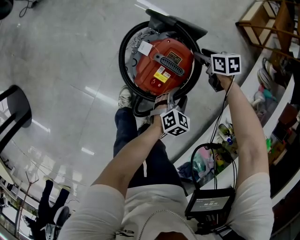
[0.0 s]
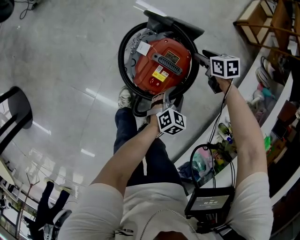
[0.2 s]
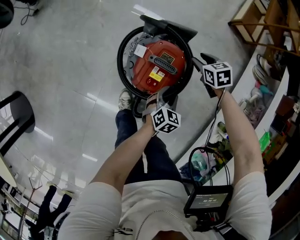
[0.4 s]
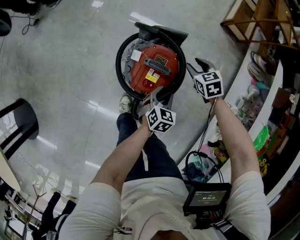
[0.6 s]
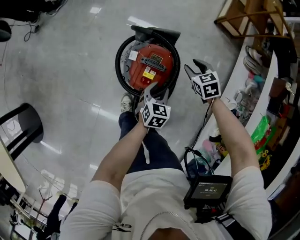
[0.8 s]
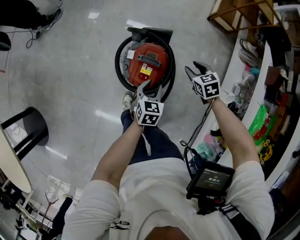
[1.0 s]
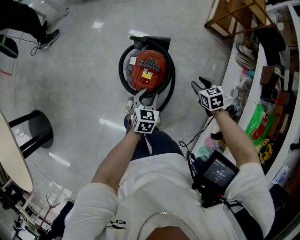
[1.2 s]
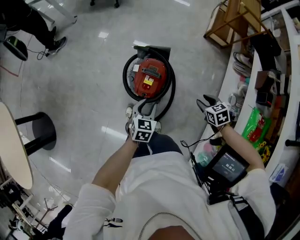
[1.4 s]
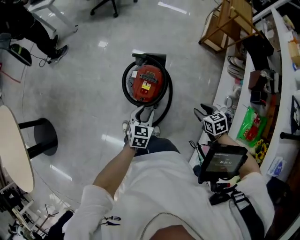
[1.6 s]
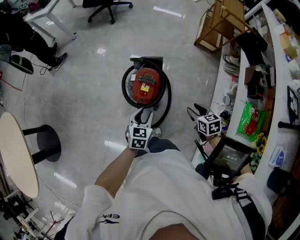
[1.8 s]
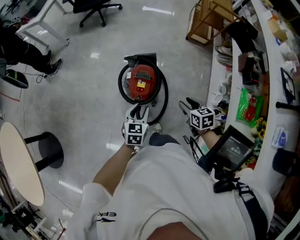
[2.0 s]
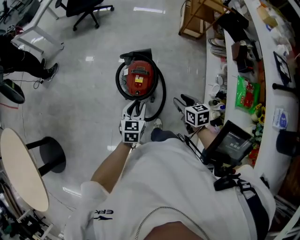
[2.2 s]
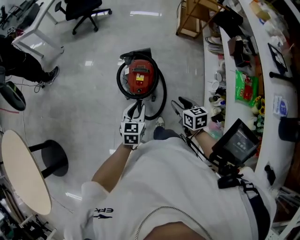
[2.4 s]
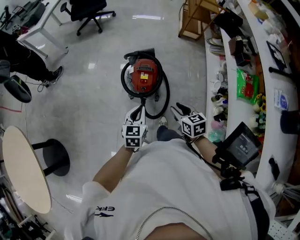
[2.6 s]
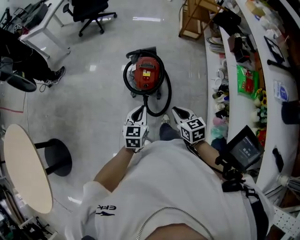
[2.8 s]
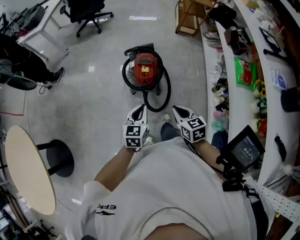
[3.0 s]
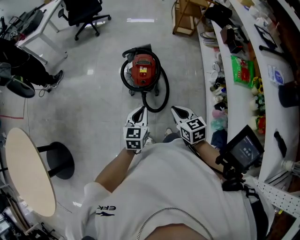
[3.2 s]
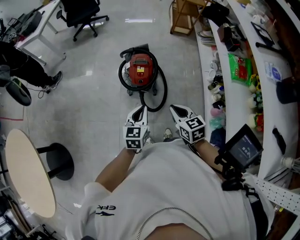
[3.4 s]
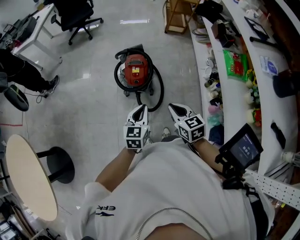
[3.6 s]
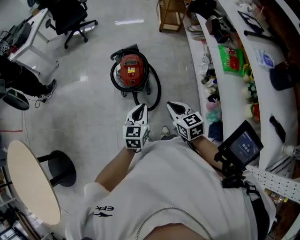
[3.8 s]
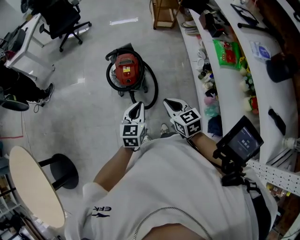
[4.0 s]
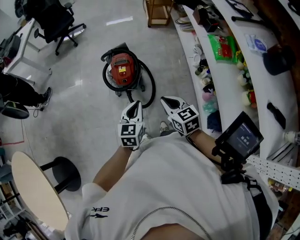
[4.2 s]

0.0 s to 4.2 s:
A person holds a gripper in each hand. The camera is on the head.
0.0 to 1.4 s: The right gripper heads backward, upward and to the right, covering approximately 40 cm; the left gripper travels upward and to the left by some 30 cm.
1.4 to 2.8 s: The right gripper travels backward, to the left and upward by about 40 cm, changes its angle by some 30 degrees, and closes its fingers. The left gripper shifts about 30 cm backward, upward and to the left, and closes.
2.8 to 4.2 s: The left gripper shifts approximately 10 cm to the right and backward. Meanwhile the right gripper shifts approximately 10 cm backward and to the right.

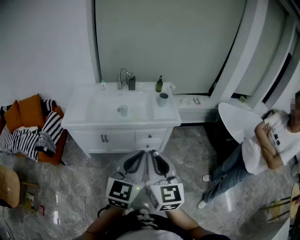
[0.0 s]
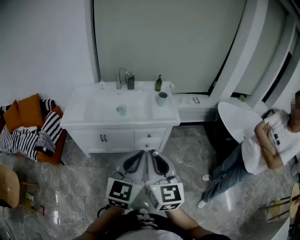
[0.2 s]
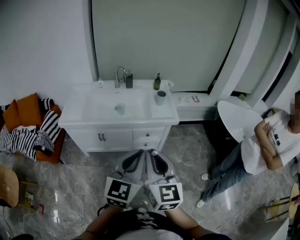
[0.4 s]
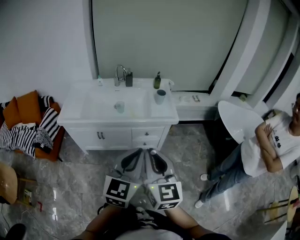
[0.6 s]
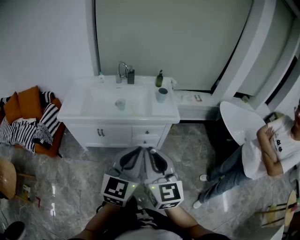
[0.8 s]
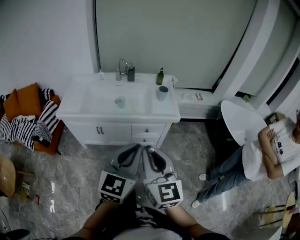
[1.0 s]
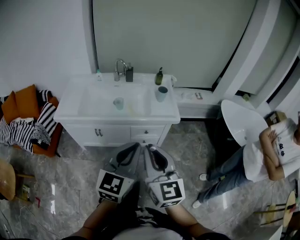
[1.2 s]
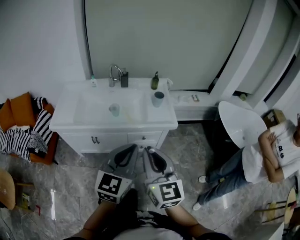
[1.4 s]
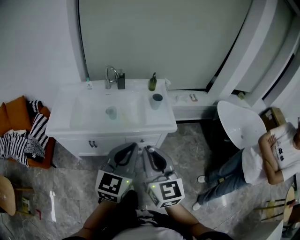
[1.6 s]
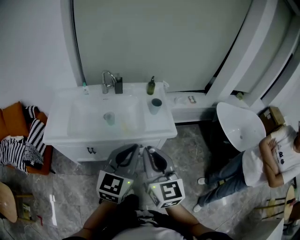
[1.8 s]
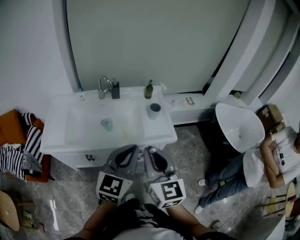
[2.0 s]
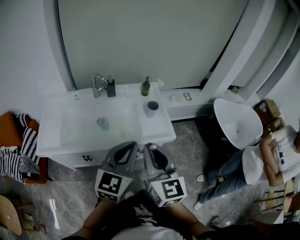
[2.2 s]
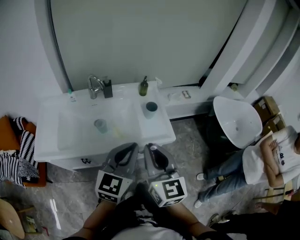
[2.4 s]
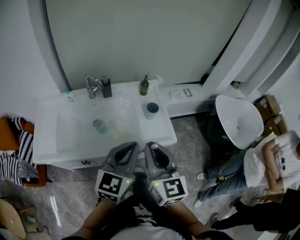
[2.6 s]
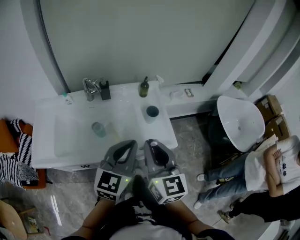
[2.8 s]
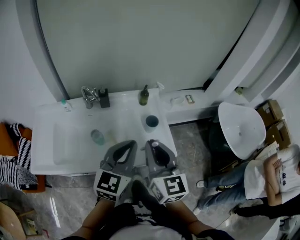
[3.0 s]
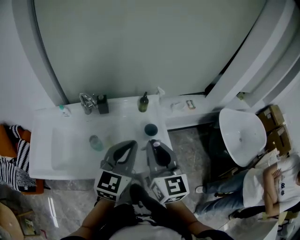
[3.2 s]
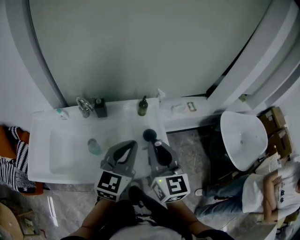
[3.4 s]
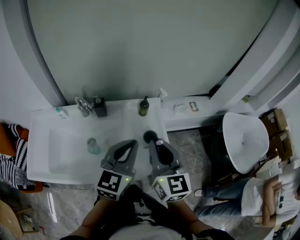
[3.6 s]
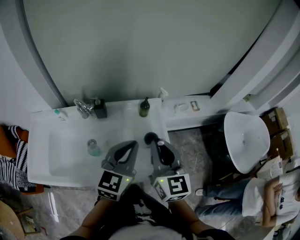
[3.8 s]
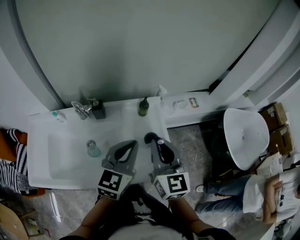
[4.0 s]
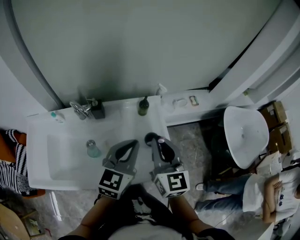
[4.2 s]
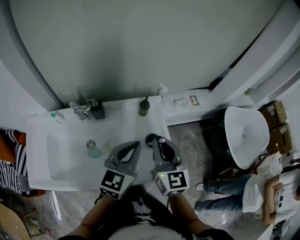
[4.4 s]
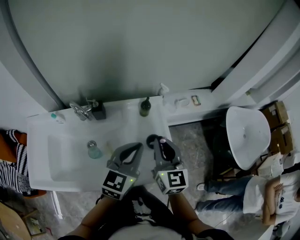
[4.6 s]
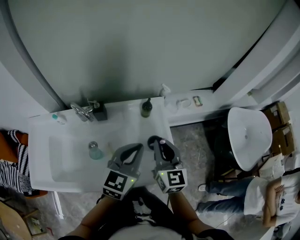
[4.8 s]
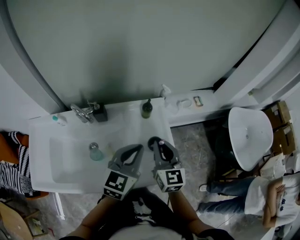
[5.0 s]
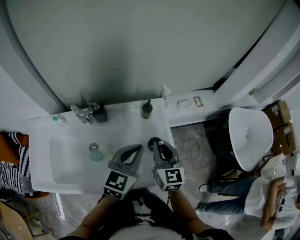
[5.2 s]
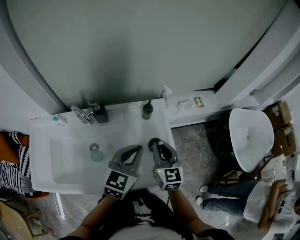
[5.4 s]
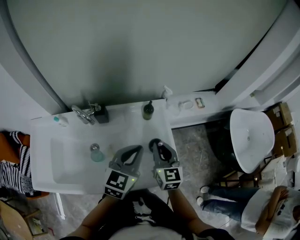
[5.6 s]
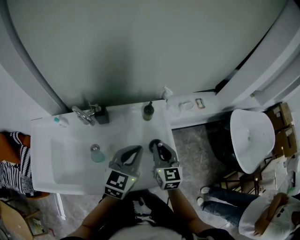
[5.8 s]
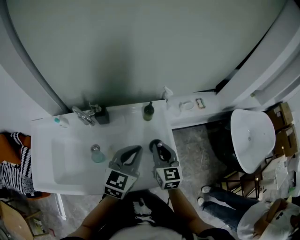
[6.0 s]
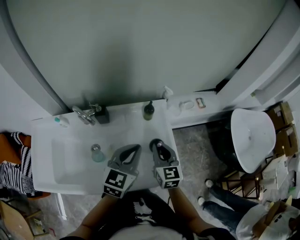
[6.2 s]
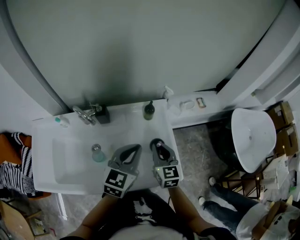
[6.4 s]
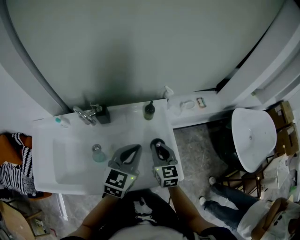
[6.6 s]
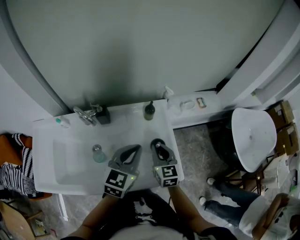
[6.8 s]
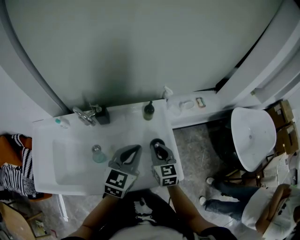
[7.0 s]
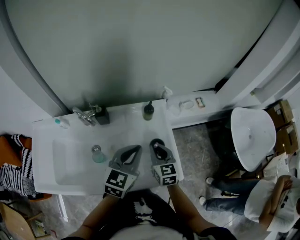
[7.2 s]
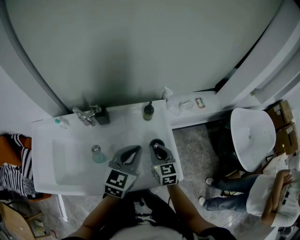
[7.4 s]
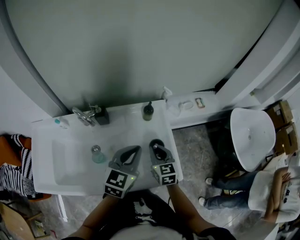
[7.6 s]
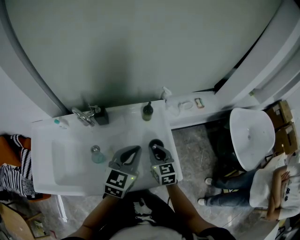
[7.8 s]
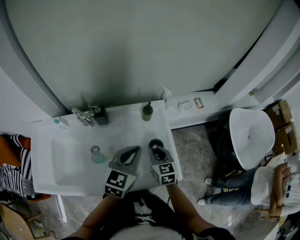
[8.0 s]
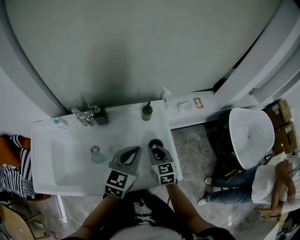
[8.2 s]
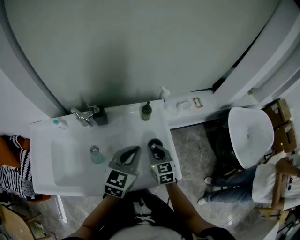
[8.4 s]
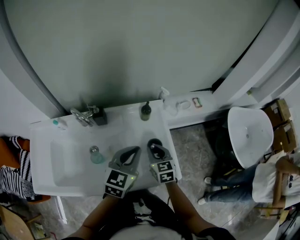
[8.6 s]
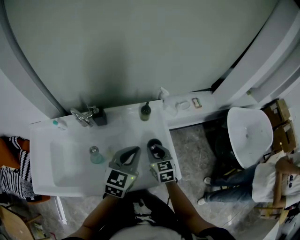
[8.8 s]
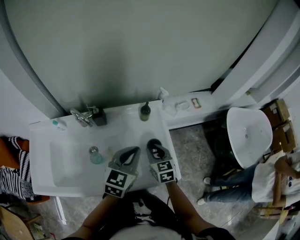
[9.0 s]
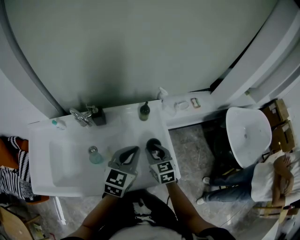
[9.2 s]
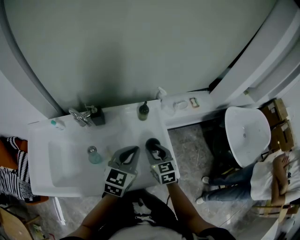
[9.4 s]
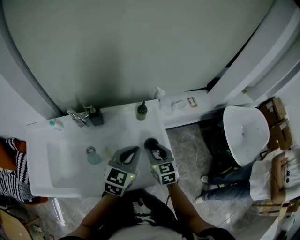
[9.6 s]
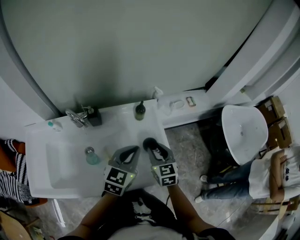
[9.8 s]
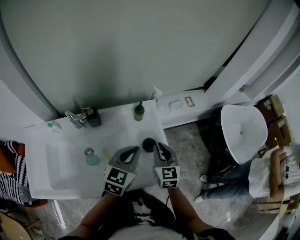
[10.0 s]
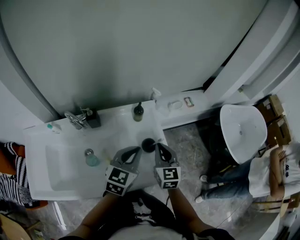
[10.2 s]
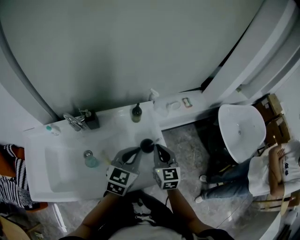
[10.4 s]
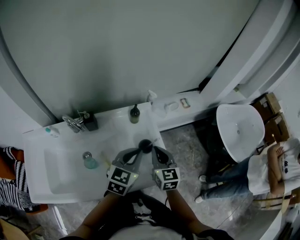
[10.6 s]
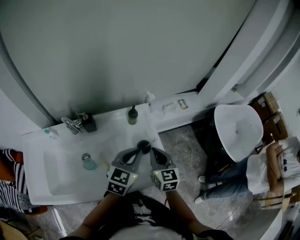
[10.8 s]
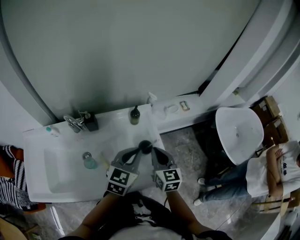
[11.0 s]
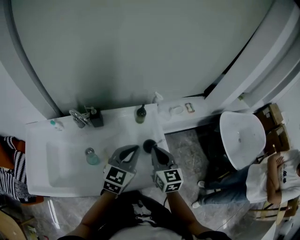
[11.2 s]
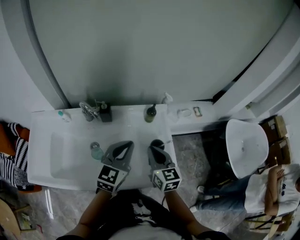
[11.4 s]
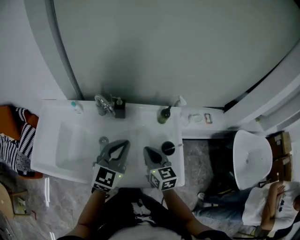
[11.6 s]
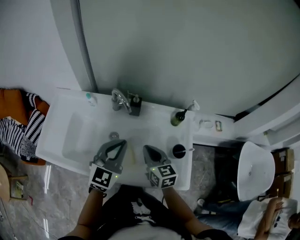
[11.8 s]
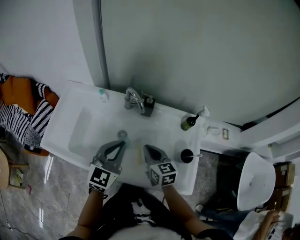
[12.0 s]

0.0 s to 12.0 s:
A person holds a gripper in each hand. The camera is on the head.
0.0 to 1.6 s: The two grippers go roughly 15 cm forward.
1.6 to 3.0 s: Both grippers move forward, some 30 cm.
3.0 to 4.4 s: Both grippers travel together forward, roughly 15 cm.
4.4 to 6.0 s: The right gripper travels downward by approximately 10 cm.
6.0 to 7.6 s: The right gripper shifts some 5 cm downward.
7.6 to 9.0 s: There are only small adjustments of the grippers.
9.0 to 10.4 s: The right gripper goes about 10 cm upward and to the right, and closes up.
10.4 to 12.0 s: The left gripper moves roughly 25 cm, and changes its angle by about 30 degrees. The right gripper changes place by about 25 cm, and turns by about 40 degrees.

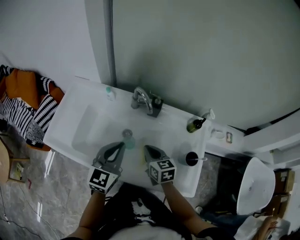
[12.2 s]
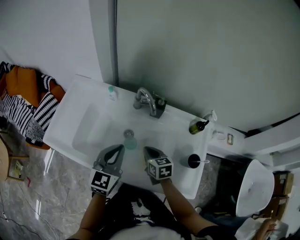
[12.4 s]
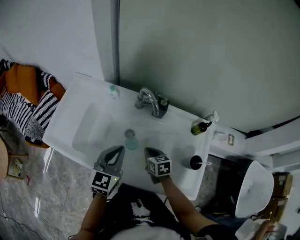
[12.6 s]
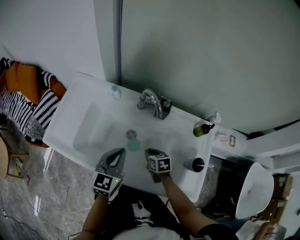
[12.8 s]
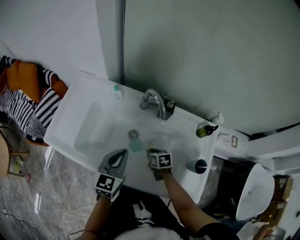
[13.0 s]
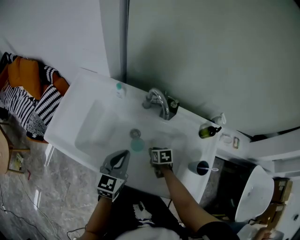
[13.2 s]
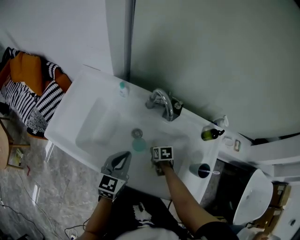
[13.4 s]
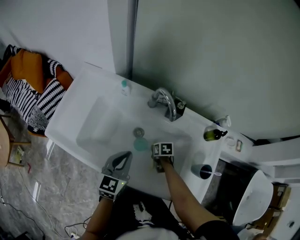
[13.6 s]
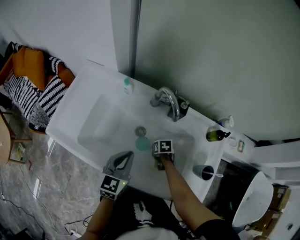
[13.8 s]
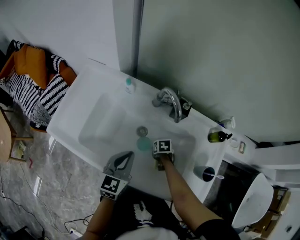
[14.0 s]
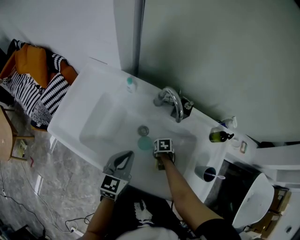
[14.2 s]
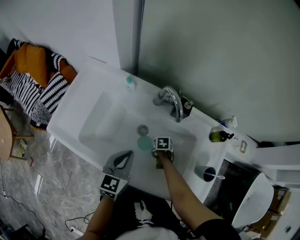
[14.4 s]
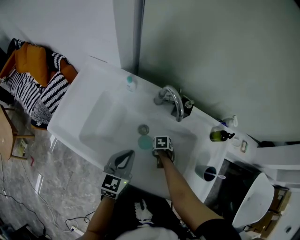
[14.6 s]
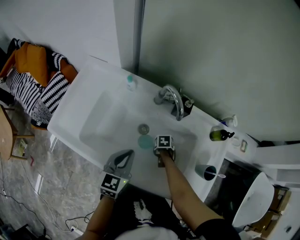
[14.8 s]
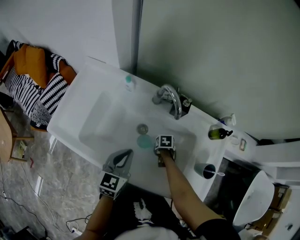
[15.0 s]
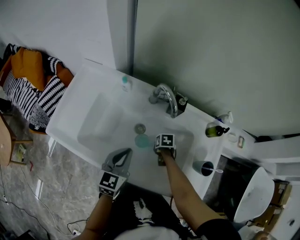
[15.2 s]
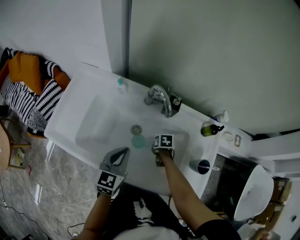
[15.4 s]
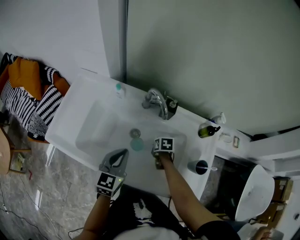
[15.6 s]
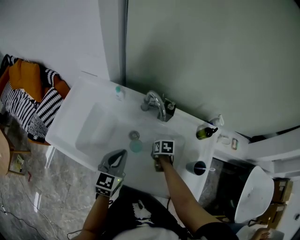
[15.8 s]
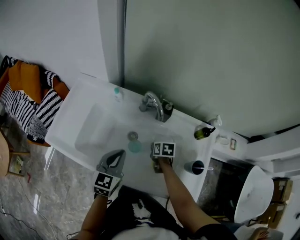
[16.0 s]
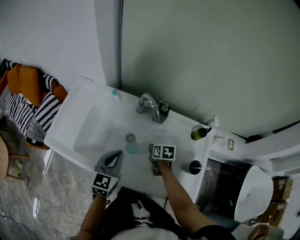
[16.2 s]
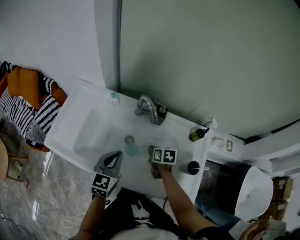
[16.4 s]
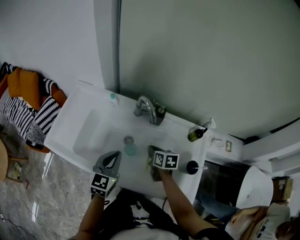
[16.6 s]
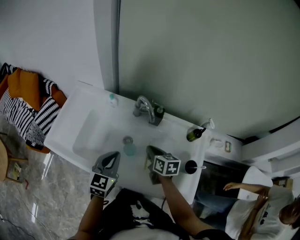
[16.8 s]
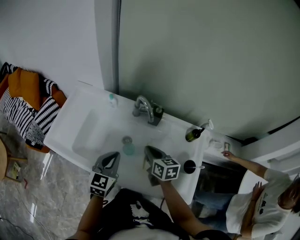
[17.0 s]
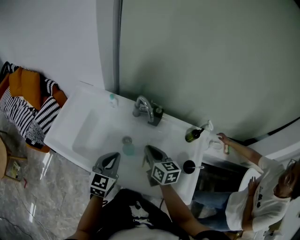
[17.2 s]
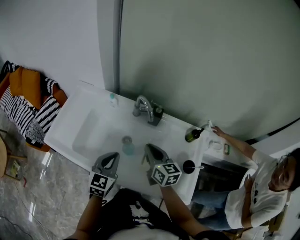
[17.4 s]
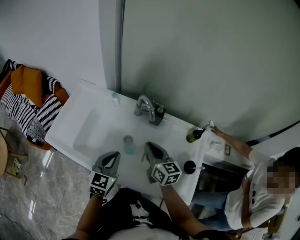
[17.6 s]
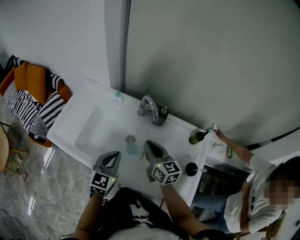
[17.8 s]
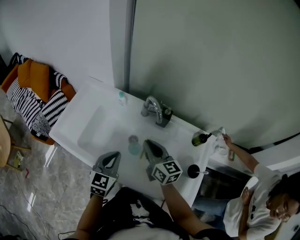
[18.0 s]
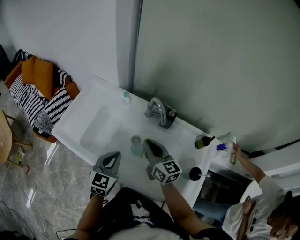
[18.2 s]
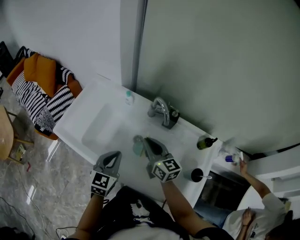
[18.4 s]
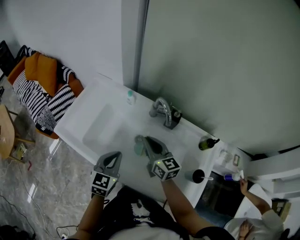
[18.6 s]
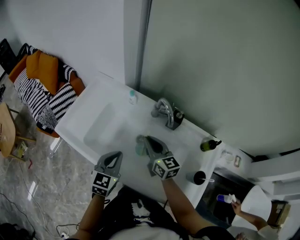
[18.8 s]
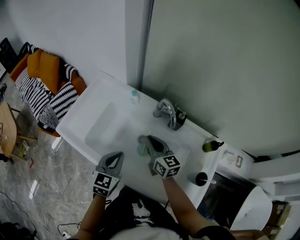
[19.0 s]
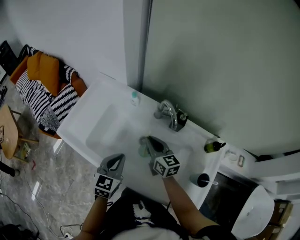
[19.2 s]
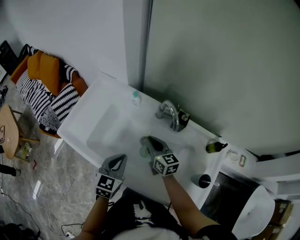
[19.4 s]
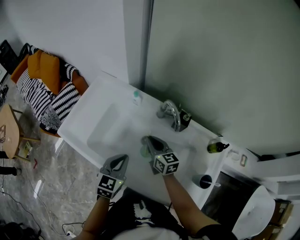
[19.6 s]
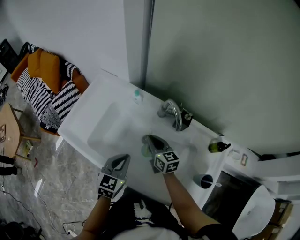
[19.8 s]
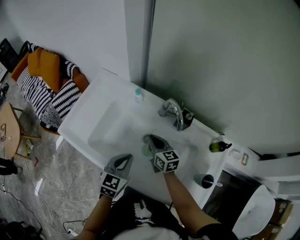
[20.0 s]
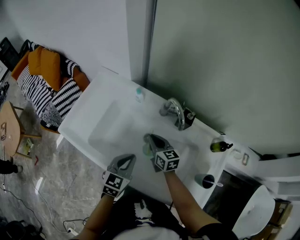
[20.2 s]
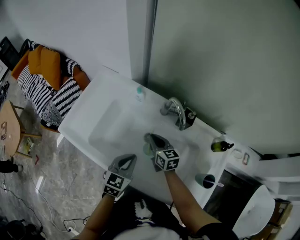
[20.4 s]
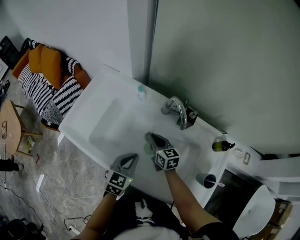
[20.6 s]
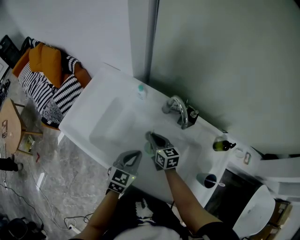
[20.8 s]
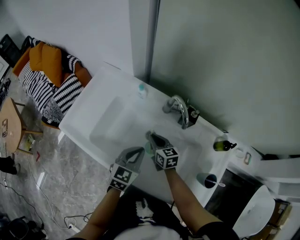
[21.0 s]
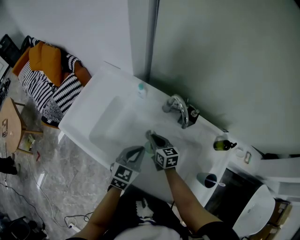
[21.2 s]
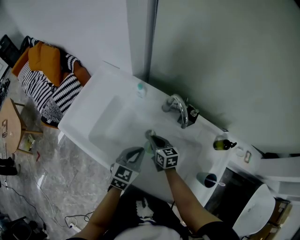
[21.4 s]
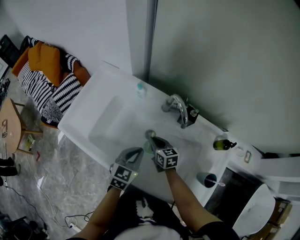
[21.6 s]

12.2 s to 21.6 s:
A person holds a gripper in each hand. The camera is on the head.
12.2 to 13.8 s: The right gripper moves downward, some 25 cm, angles its fingers downward, by about 40 degrees, and opens up, while the left gripper shifts some 10 cm downward.
13.8 to 15.4 s: The grippers make only small movements.
15.4 to 17.0 s: The left gripper ends up about 5 cm from where it was. Meanwhile the right gripper heads upward, covering some 25 cm, and tilts its fingers some 40 degrees upward.
17.0 to 18.4 s: The right gripper is displaced to the left and upward by some 10 cm, and swivels approximately 30 degrees.
18.4 to 20.0 s: The right gripper shifts approximately 15 cm downward and forward.
20.0 to 21.6 s: The right gripper goes roughly 10 cm downward; the left gripper shifts by about 5 cm.
